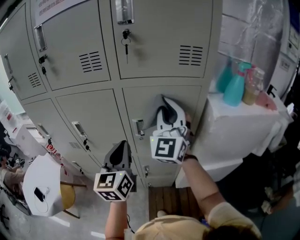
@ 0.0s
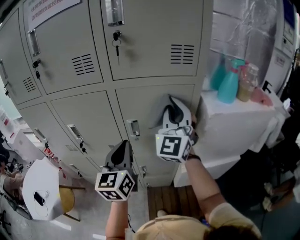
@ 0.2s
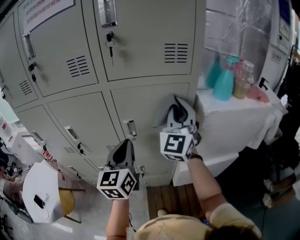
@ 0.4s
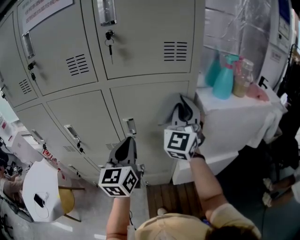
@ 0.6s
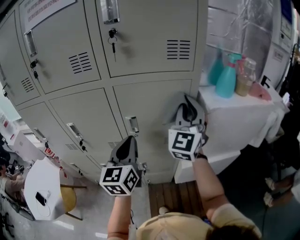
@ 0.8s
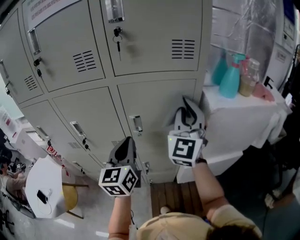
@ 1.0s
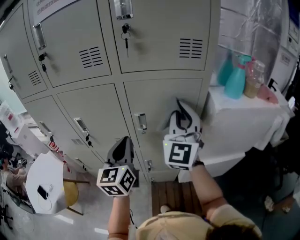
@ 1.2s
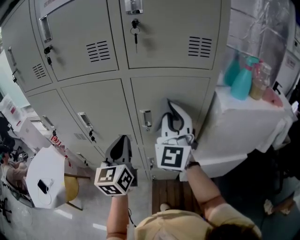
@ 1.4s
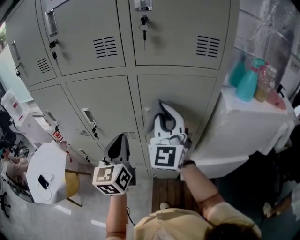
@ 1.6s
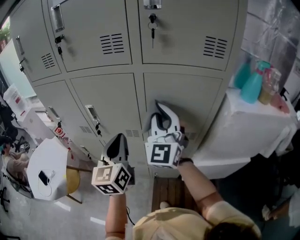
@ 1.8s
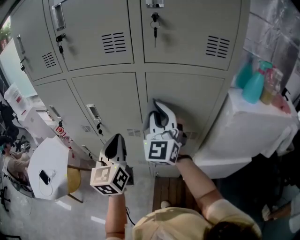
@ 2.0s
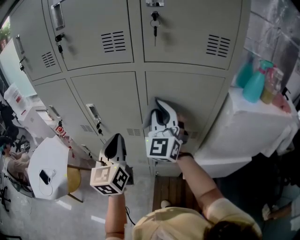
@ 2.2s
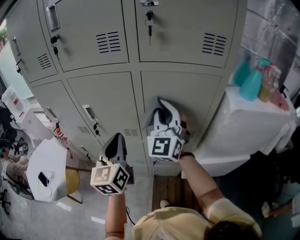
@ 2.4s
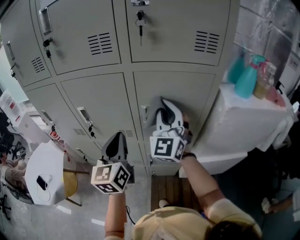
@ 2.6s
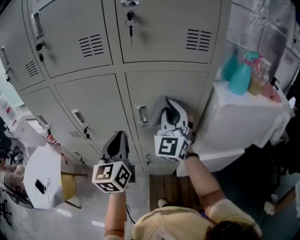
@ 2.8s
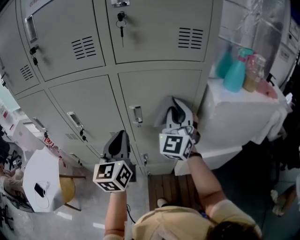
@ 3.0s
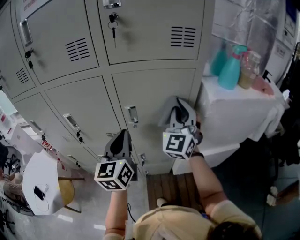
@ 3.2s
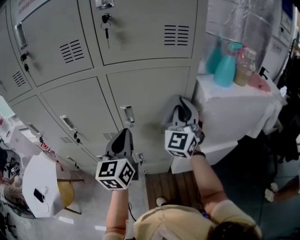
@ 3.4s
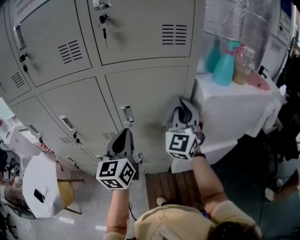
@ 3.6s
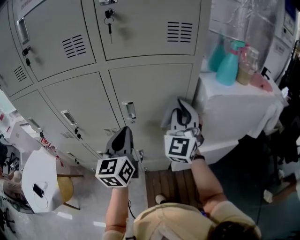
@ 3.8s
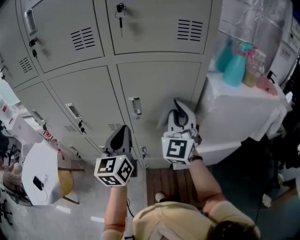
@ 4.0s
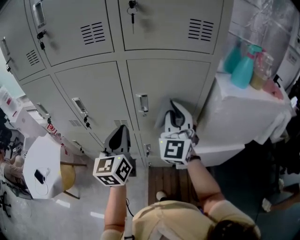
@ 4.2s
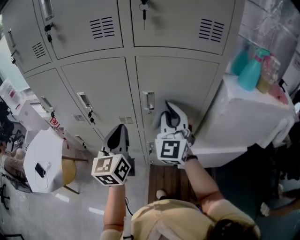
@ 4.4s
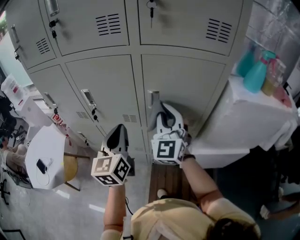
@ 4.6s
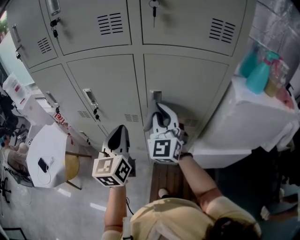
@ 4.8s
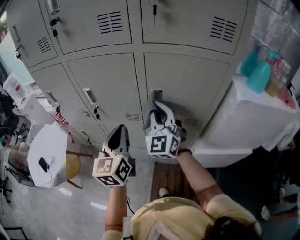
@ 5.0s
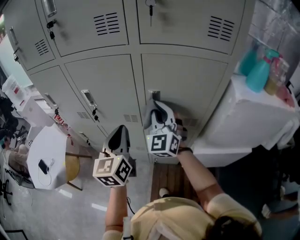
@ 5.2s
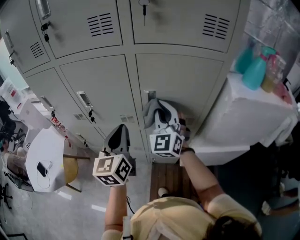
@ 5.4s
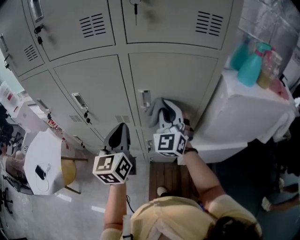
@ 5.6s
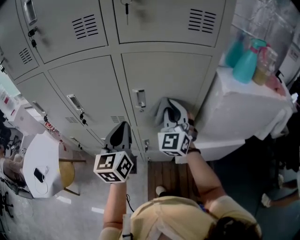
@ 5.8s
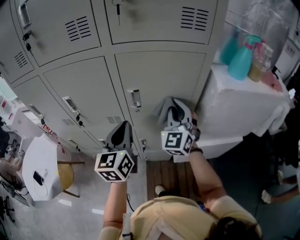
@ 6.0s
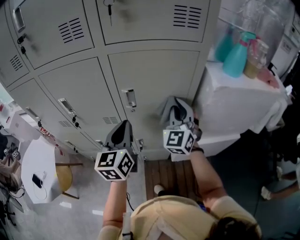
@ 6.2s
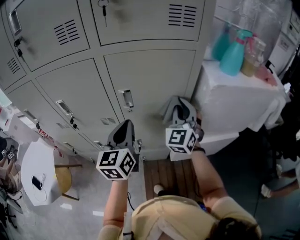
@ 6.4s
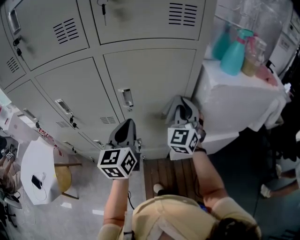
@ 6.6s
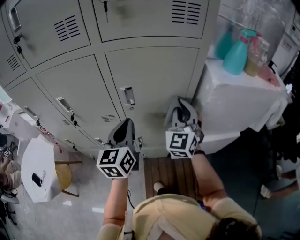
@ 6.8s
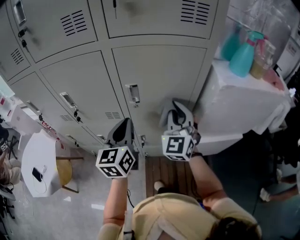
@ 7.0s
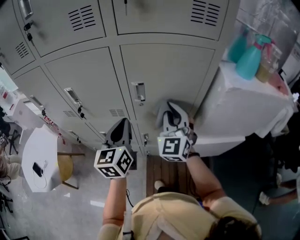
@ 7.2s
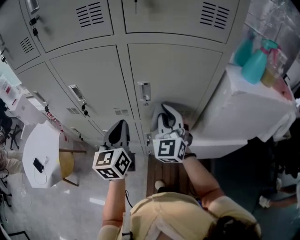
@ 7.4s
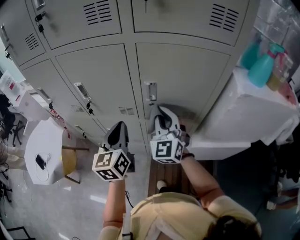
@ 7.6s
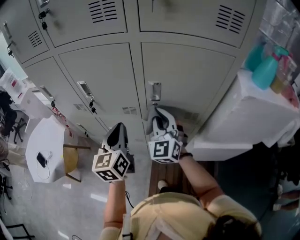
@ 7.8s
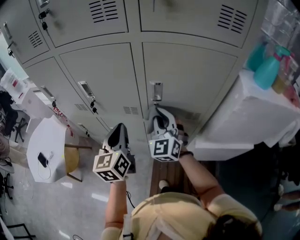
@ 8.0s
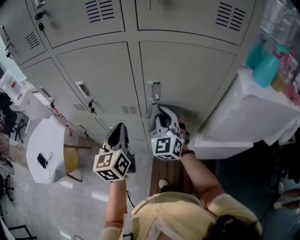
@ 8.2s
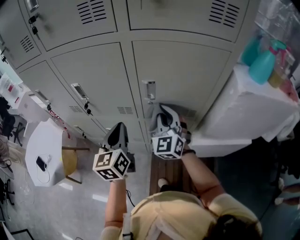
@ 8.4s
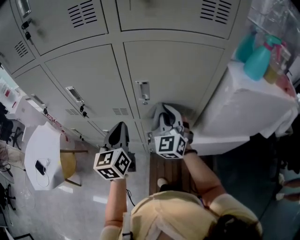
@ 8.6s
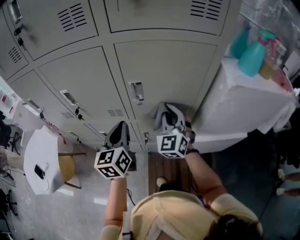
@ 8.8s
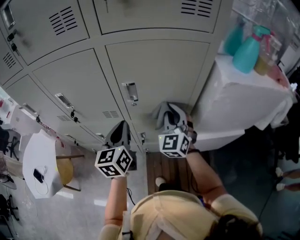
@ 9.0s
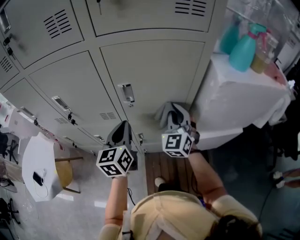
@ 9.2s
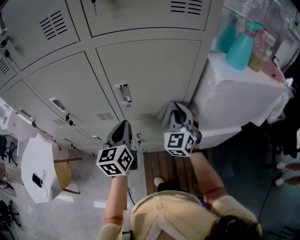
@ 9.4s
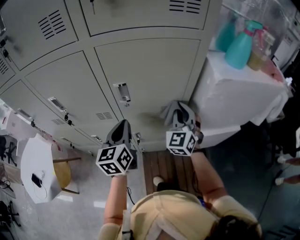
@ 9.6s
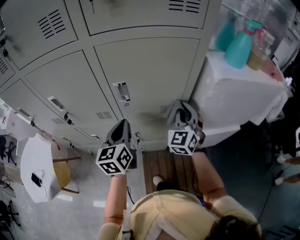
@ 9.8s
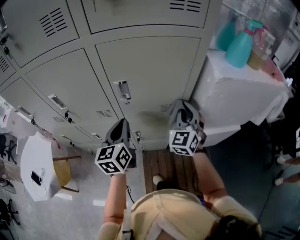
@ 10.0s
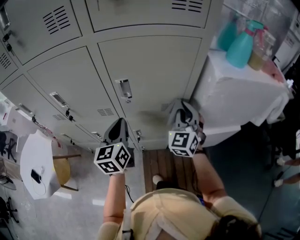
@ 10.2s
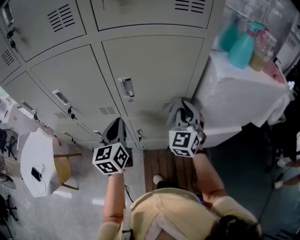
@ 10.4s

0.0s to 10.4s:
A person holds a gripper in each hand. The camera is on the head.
0.0s to 1.4s: The right gripper goes to the right and returns, about 10 cm each way; the left gripper moves approximately 5 cm to the right and comes back.
1.4s to 3.0s: The left gripper moves some 5 cm to the left and comes back. Meanwhile the right gripper travels to the right and downward by roughly 10 cm.
3.0s to 4.4s: The right gripper moves to the left, about 5 cm. Meanwhile the left gripper moves some 5 cm.
4.4s to 6.0s: The left gripper is displaced to the right by roughly 5 cm. The right gripper moves to the right and downward, about 10 cm.
6.0s to 7.4s: The left gripper shifts by about 5 cm; the right gripper shifts some 5 cm to the left.
7.4s to 9.0s: The right gripper is displaced to the right by about 5 cm, while the left gripper shifts by some 5 cm.
9.0s to 10.4s: The right gripper moves to the right, approximately 5 cm.

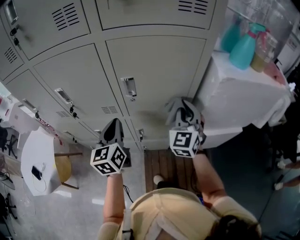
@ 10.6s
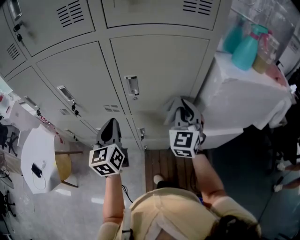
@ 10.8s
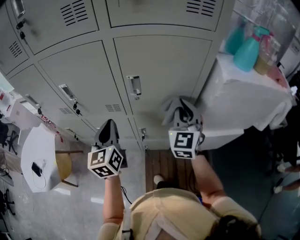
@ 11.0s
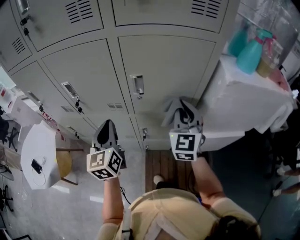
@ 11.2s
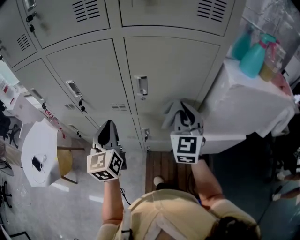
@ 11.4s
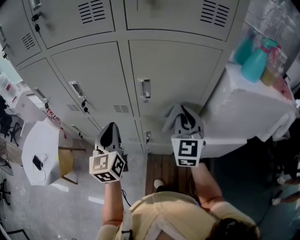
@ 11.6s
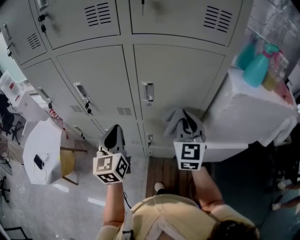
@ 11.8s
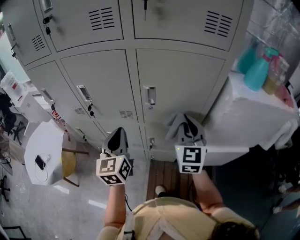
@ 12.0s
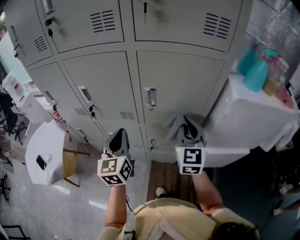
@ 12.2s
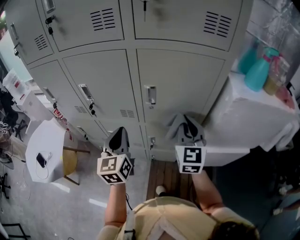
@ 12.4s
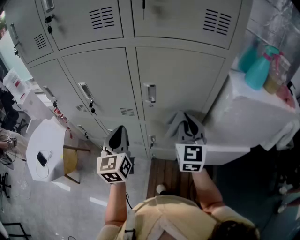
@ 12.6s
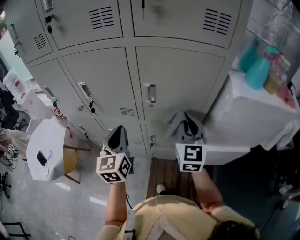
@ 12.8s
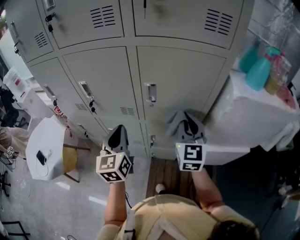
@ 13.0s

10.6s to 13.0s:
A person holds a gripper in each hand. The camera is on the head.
10.6s to 11.8s: The left gripper moves roughly 5 cm, while the right gripper goes about 5 cm to the left.
11.8s to 13.0s: The grippers stay close to where they were, moving slightly.

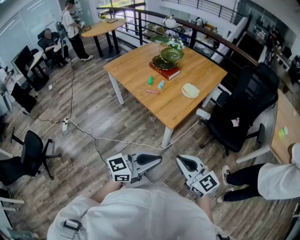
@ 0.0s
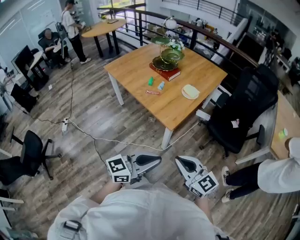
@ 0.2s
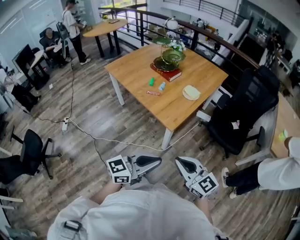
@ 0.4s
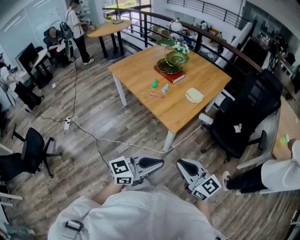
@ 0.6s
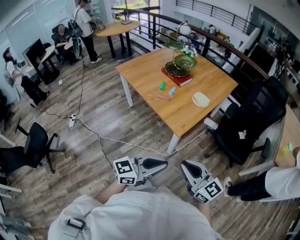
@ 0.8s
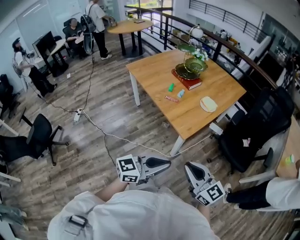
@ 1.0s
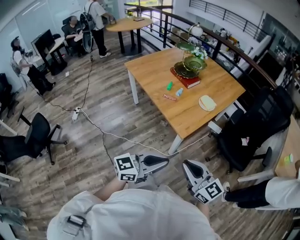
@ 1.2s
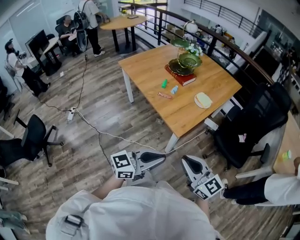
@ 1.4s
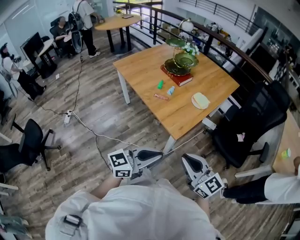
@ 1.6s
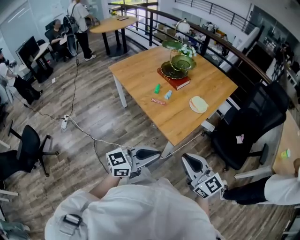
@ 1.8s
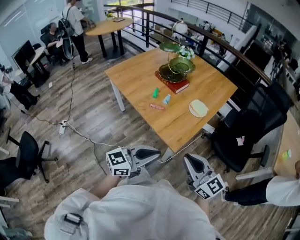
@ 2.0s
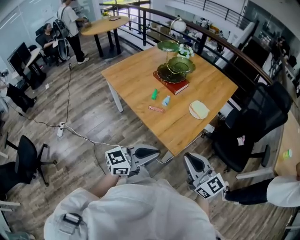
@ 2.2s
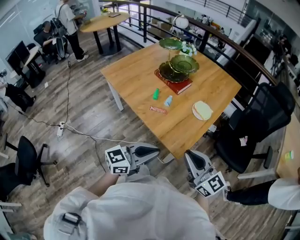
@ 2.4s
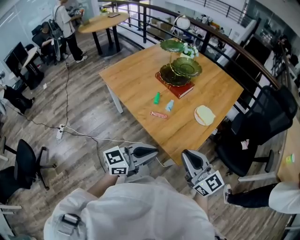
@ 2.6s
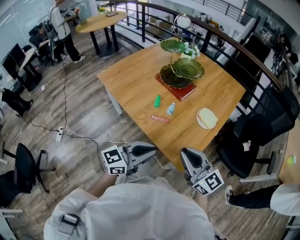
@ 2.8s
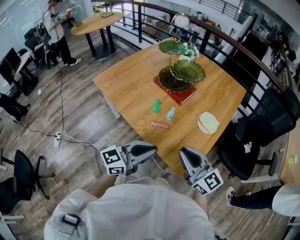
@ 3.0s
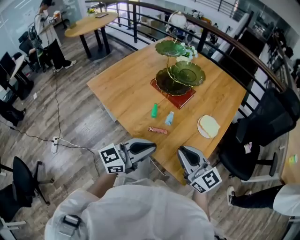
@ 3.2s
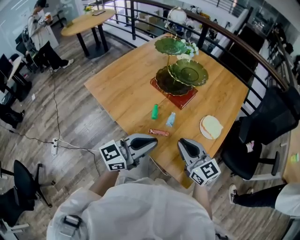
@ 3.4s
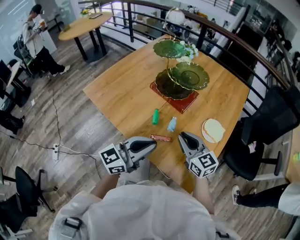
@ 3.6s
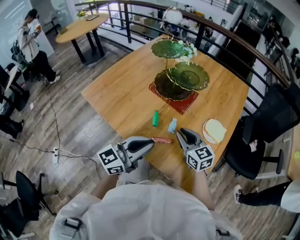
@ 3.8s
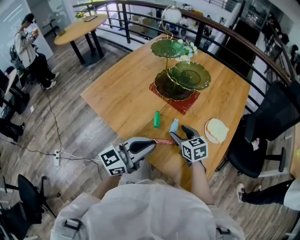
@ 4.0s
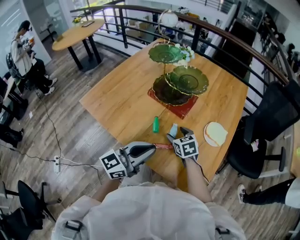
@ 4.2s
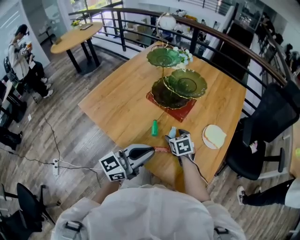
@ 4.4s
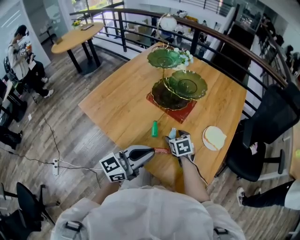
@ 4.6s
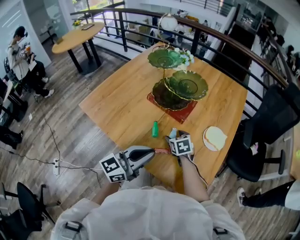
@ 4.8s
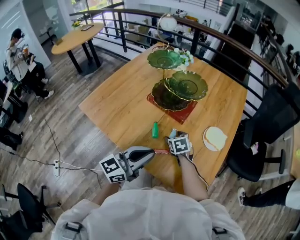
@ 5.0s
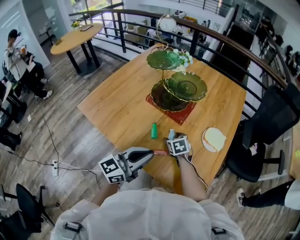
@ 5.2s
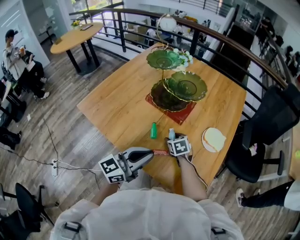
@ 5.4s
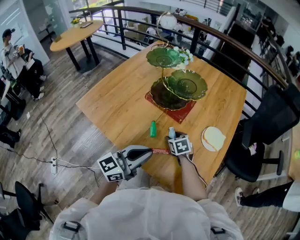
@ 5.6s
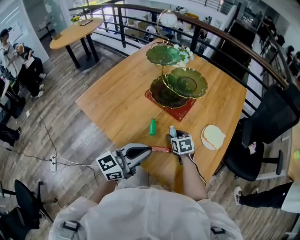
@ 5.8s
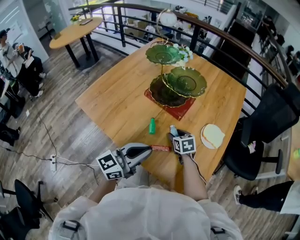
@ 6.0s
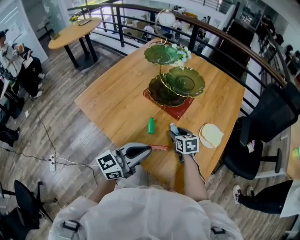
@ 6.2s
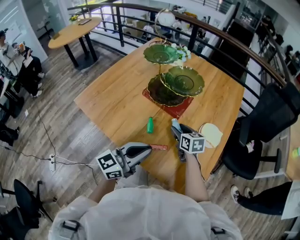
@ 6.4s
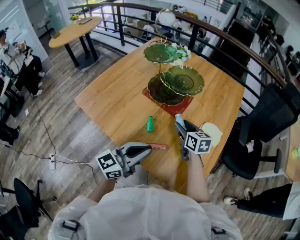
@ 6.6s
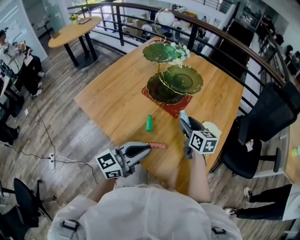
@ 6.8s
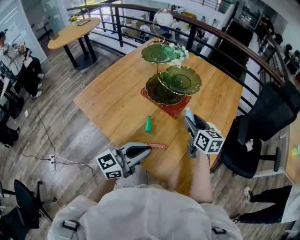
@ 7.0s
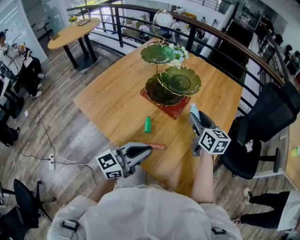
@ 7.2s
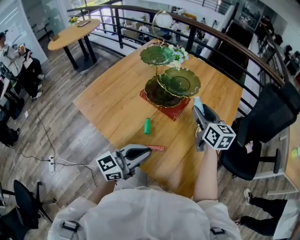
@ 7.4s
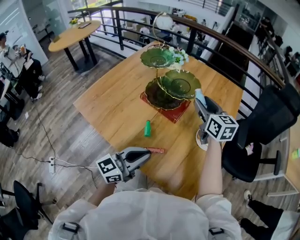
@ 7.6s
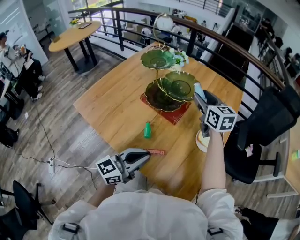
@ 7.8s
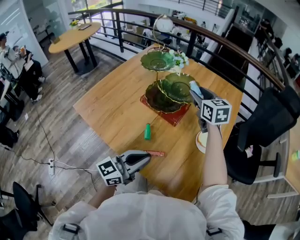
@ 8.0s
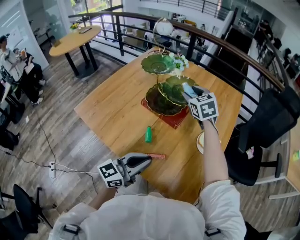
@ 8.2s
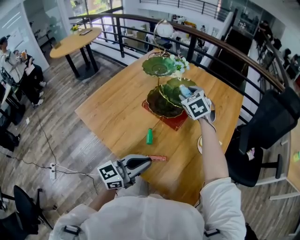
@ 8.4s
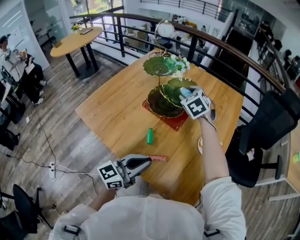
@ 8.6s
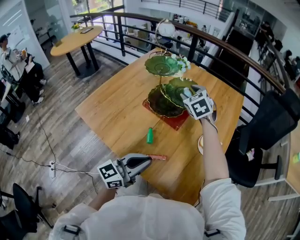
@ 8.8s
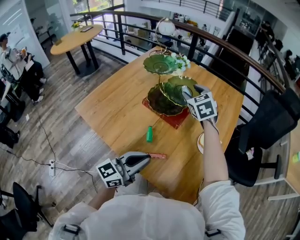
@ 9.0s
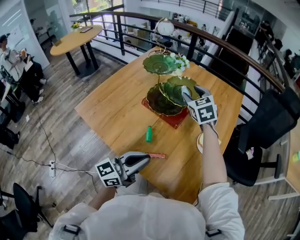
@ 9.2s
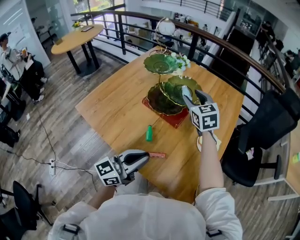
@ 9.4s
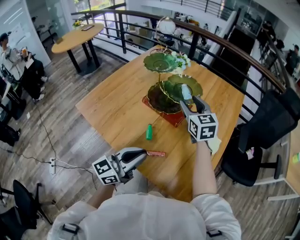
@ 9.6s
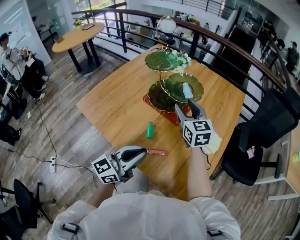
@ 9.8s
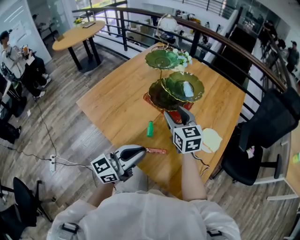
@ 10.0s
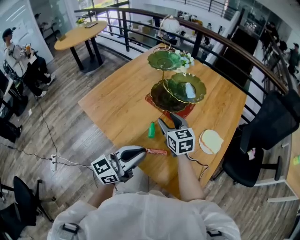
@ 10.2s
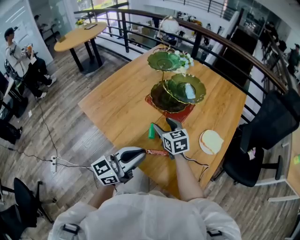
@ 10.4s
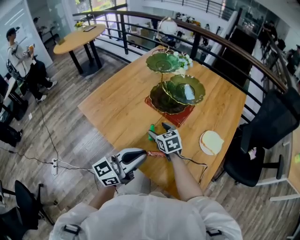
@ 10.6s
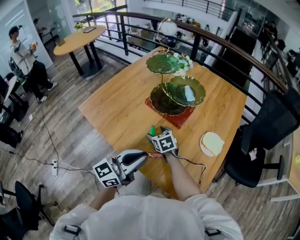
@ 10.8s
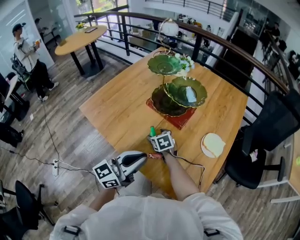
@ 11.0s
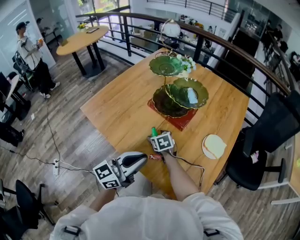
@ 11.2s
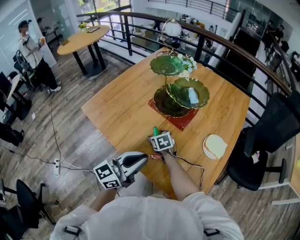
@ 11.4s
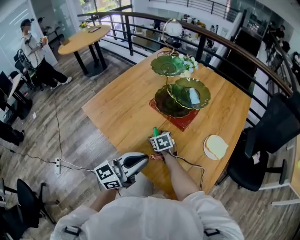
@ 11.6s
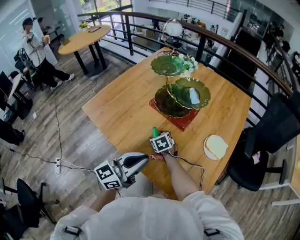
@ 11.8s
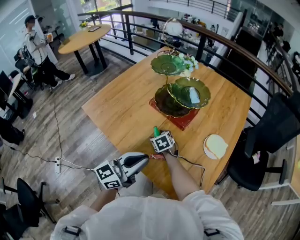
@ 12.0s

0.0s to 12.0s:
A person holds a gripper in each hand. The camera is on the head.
0.0s to 1.6s: The grippers both shift forward by about 10 cm.
1.6s to 3.0s: The two grippers go about 30 cm forward and to the left.
3.0s to 4.4s: The left gripper shifts roughly 15 cm forward and to the left. Meanwhile the right gripper is displaced forward and downward by some 35 cm, tips its fingers downward by approximately 50 degrees, and opens its fingers.
4.4s to 6.0s: The grippers stay close to where they were, moving slightly.
6.0s to 7.6s: The right gripper is displaced upward by roughly 25 cm, and tilts its fingers approximately 30 degrees upward.
7.6s to 9.0s: The right gripper is displaced to the left and forward by roughly 10 cm, and changes its angle by roughly 40 degrees.
9.0s to 10.4s: The right gripper shifts some 20 cm backward, downward and to the left, and swivels about 30 degrees.
10.4s to 12.0s: The right gripper heads downward, covering some 15 cm, and swivels roughly 20 degrees.
